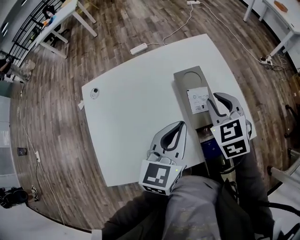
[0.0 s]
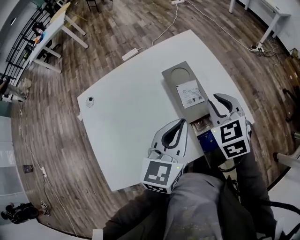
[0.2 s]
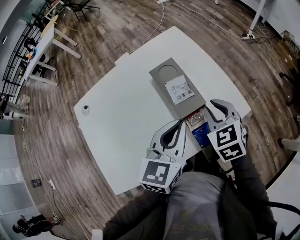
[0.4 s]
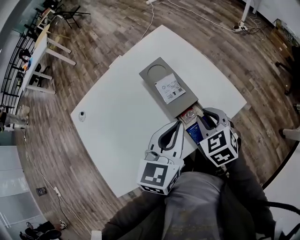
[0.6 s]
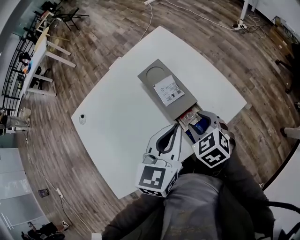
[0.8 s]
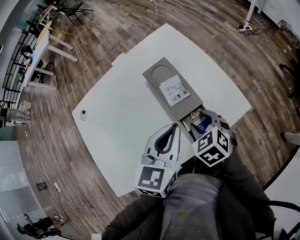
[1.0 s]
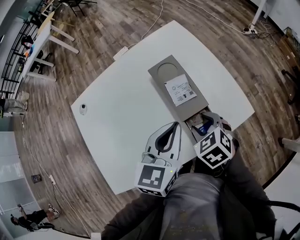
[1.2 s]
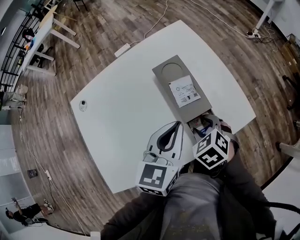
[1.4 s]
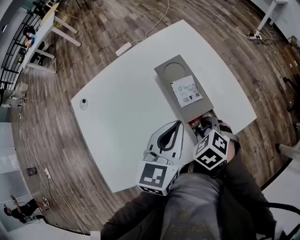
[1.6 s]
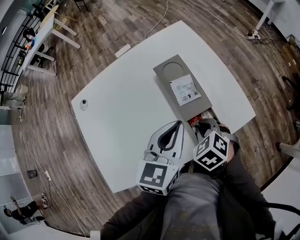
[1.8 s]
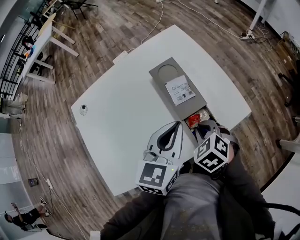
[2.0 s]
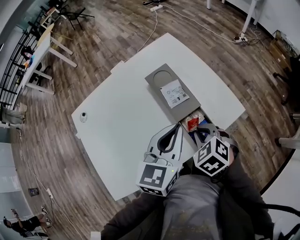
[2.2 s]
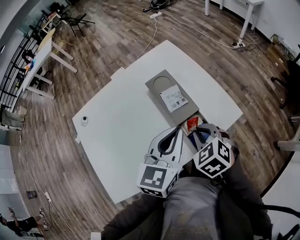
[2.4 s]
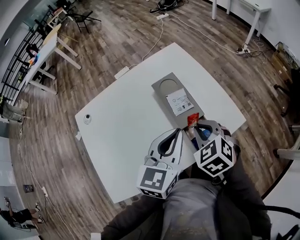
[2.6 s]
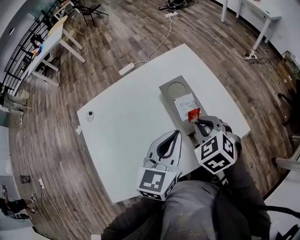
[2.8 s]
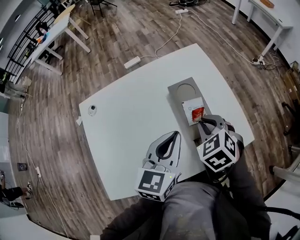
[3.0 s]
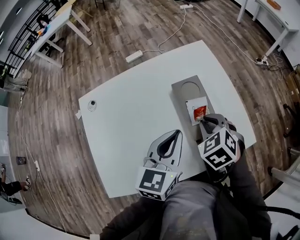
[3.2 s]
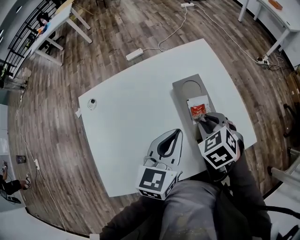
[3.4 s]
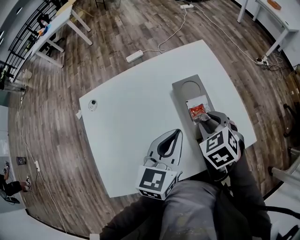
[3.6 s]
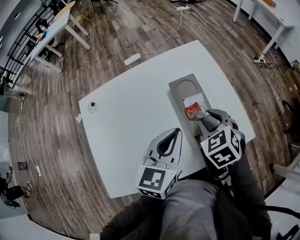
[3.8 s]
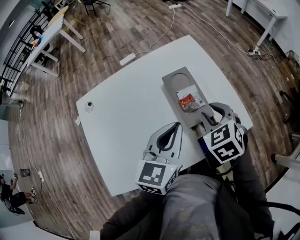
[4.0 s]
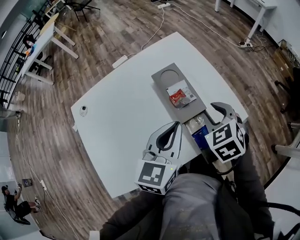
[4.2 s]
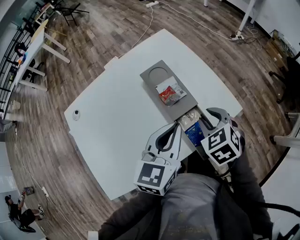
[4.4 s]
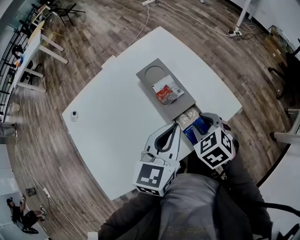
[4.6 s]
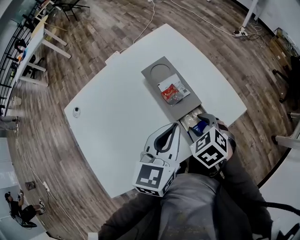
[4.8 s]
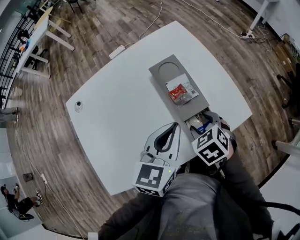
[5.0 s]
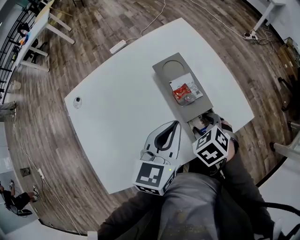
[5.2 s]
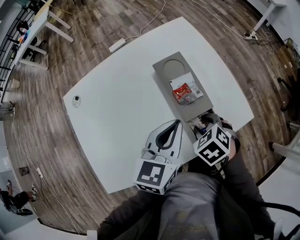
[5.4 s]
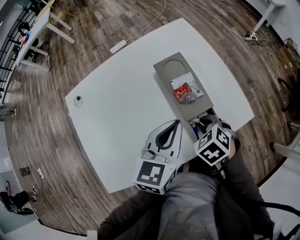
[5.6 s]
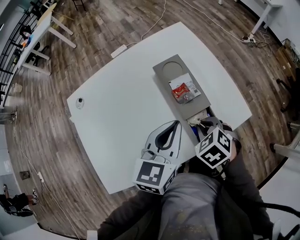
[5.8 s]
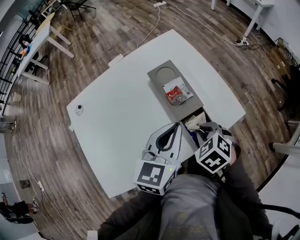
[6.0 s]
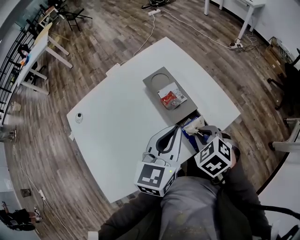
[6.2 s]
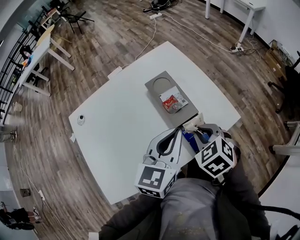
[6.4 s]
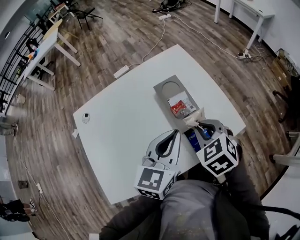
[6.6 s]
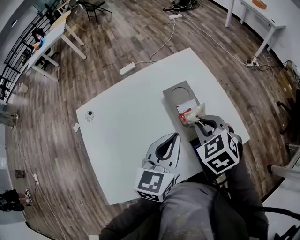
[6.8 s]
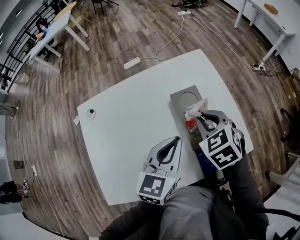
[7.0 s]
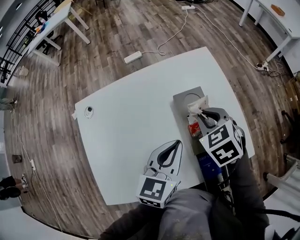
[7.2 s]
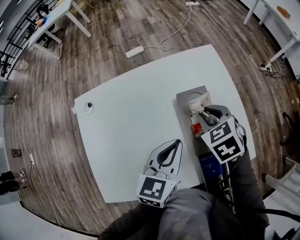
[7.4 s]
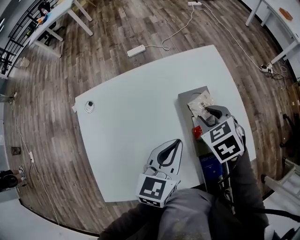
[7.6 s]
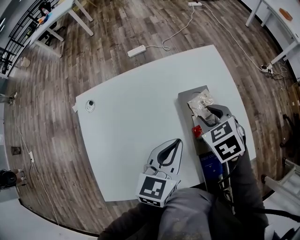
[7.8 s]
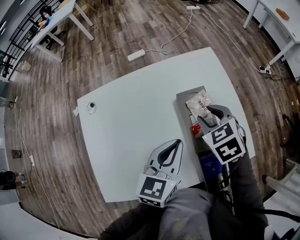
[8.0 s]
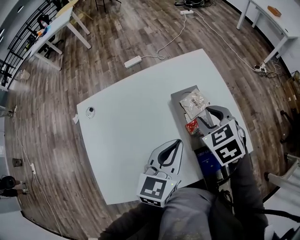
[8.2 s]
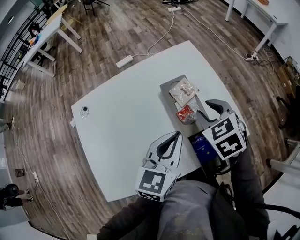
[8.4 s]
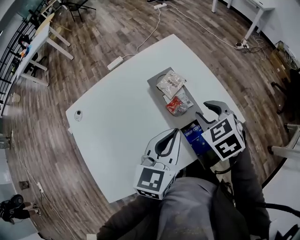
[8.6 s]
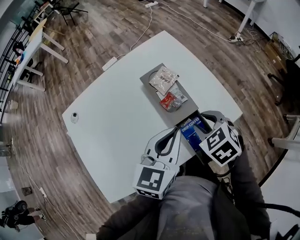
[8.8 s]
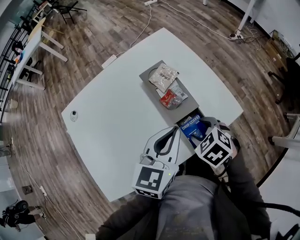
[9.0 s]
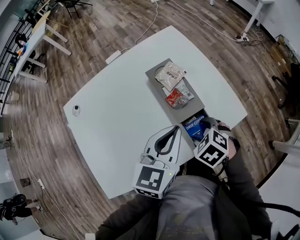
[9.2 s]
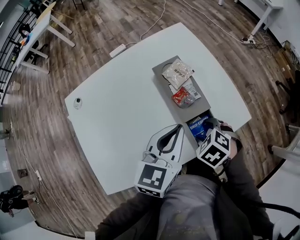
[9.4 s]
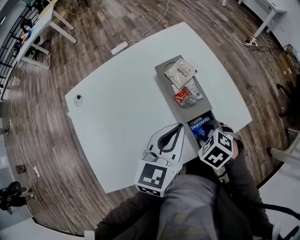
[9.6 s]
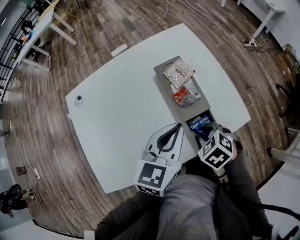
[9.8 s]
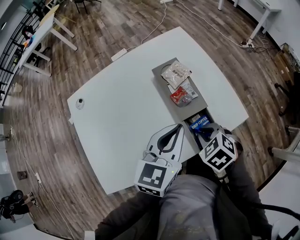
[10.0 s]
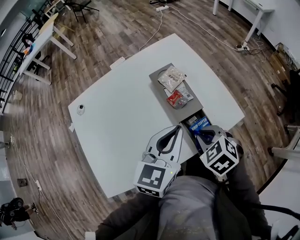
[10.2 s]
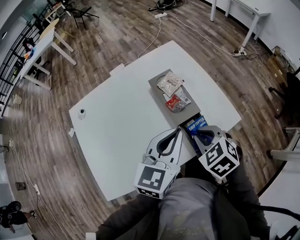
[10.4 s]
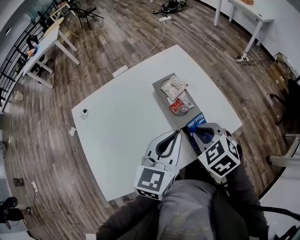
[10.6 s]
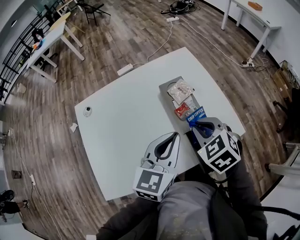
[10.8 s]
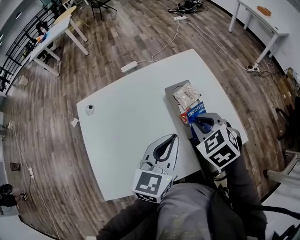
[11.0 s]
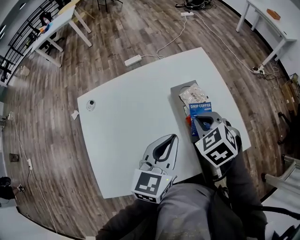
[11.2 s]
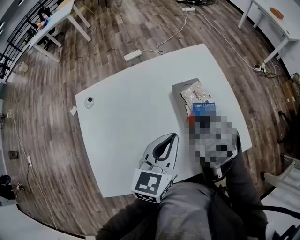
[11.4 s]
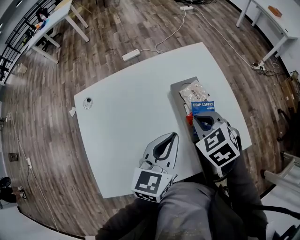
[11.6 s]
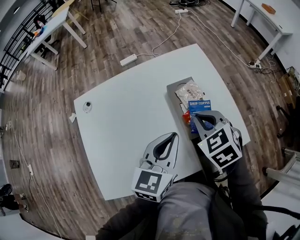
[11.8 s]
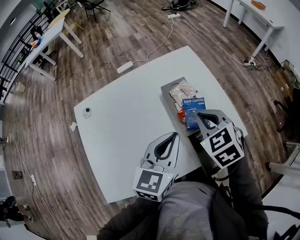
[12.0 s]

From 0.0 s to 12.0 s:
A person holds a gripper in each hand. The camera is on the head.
From 0.0 s to 1.6 s: The right gripper goes some 20 cm downward and backward, and rotates some 30 degrees.
From 1.6 s to 3.0 s: The right gripper is displaced upward and forward by some 10 cm, and closes up.
From 3.0 s to 4.4 s: The left gripper heads to the right, covering some 5 cm. The right gripper travels to the right and backward by roughly 10 cm, and opens.
From 4.4 s to 6.0 s: The right gripper moves about 5 cm, and opens and closes again.
From 6.0 s to 7.6 s: The left gripper is displaced forward and to the left by about 10 cm; the right gripper heads forward, covering some 20 cm.
From 7.6 s to 9.0 s: The right gripper is displaced backward by some 20 cm, and opens its fingers; the left gripper moves to the right and backward, roughly 10 cm.
From 9.0 s to 10.4 s: The right gripper heads upward, covering some 5 cm, and closes up.
From 10.4 s to 12.0 s: The right gripper is displaced forward and upward by about 10 cm.

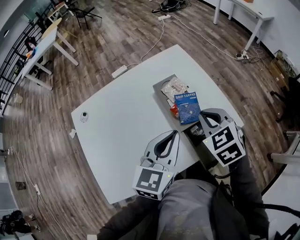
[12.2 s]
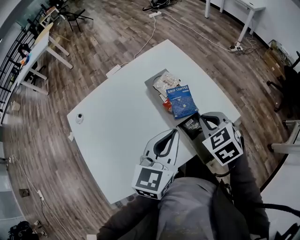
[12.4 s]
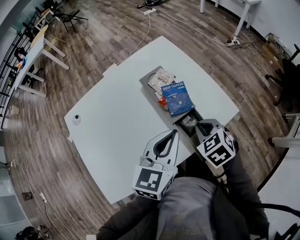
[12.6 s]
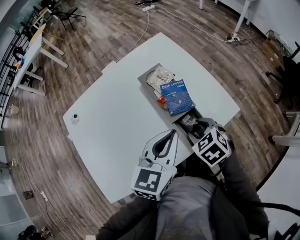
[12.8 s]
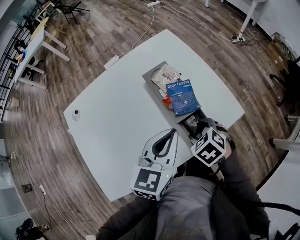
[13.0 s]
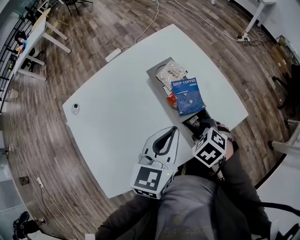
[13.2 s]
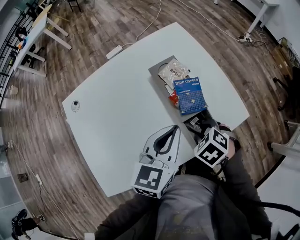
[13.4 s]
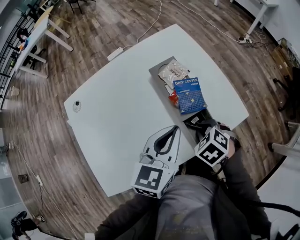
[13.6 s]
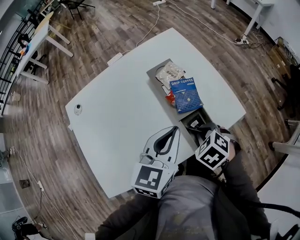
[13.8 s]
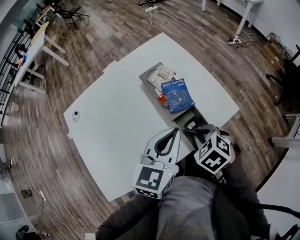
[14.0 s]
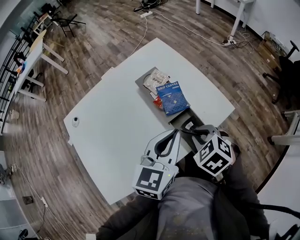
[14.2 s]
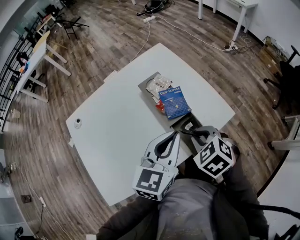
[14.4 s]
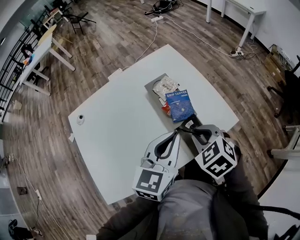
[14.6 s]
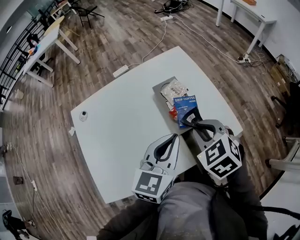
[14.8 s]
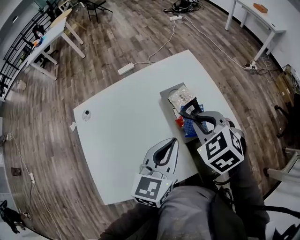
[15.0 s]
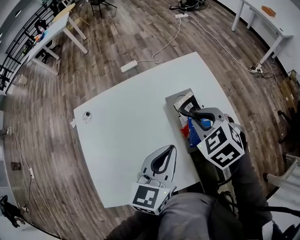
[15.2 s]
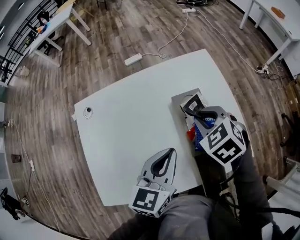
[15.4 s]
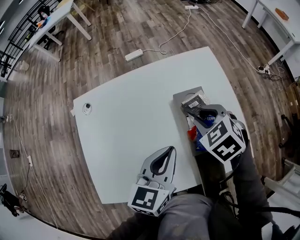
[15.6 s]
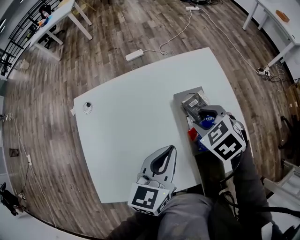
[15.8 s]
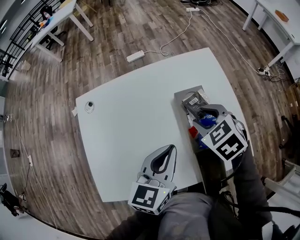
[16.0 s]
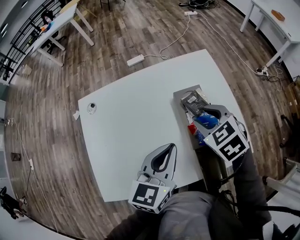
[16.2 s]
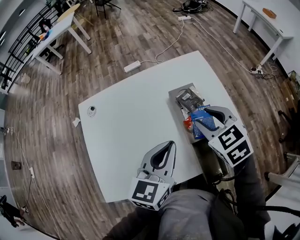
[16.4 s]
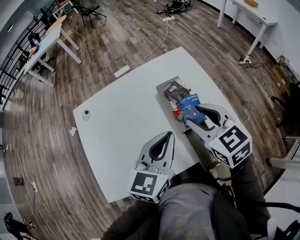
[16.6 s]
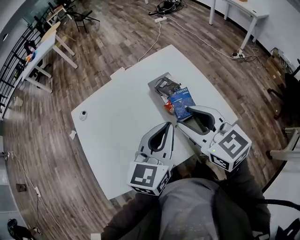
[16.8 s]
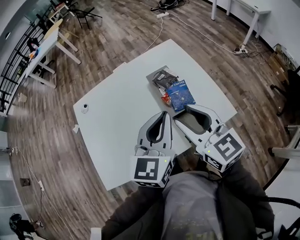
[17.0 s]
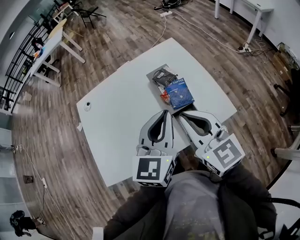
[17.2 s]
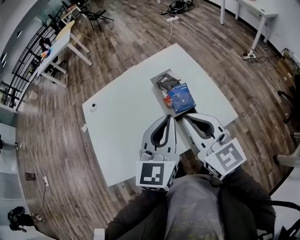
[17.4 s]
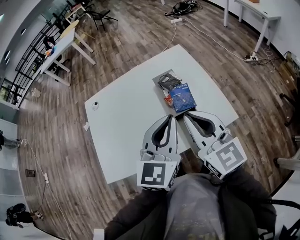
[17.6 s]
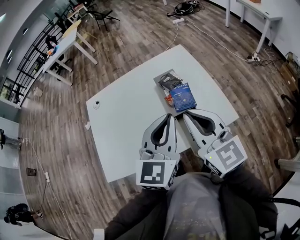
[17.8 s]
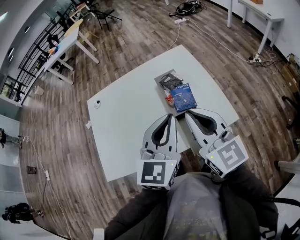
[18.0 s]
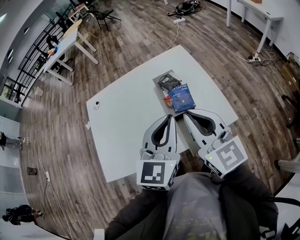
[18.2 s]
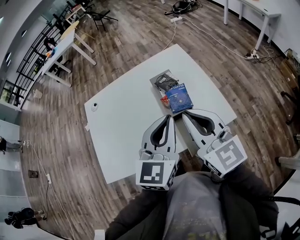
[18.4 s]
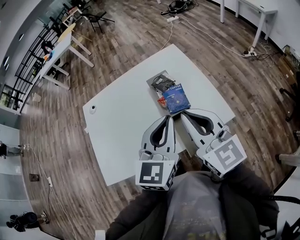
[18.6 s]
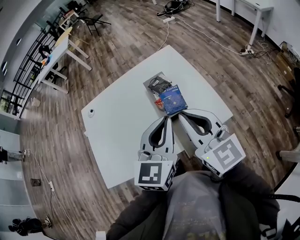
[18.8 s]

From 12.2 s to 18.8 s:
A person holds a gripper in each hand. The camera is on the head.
From 12.2 s to 13.8 s: The right gripper heads downward, covering approximately 15 cm, turns by some 30 degrees, and opens, then closes again.
From 13.8 s to 15.4 s: The right gripper goes some 20 cm forward and upward; the left gripper goes roughly 10 cm to the left and forward.
From 15.4 s to 17.2 s: The left gripper goes roughly 15 cm upward, backward and to the right; the right gripper is displaced backward and upward by approximately 25 cm, angles its fingers upward, by some 50 degrees, and opens, then closes once more.
From 17.2 s to 18.8 s: The right gripper moves roughly 5 cm.

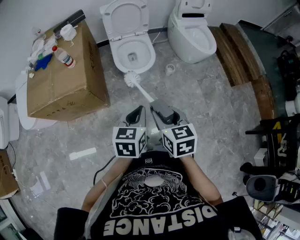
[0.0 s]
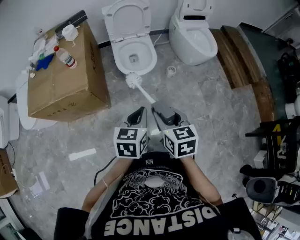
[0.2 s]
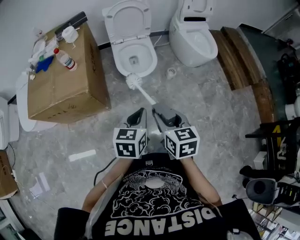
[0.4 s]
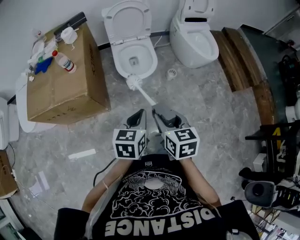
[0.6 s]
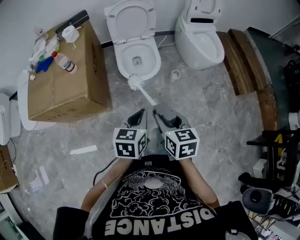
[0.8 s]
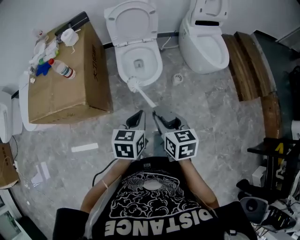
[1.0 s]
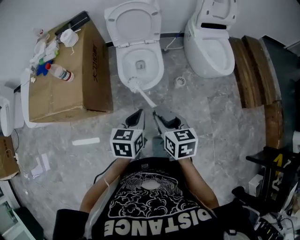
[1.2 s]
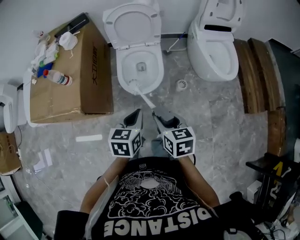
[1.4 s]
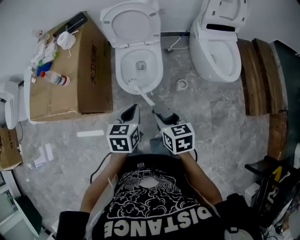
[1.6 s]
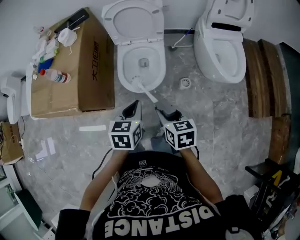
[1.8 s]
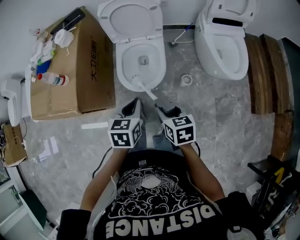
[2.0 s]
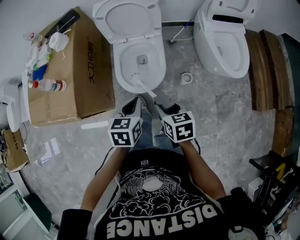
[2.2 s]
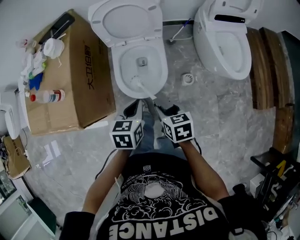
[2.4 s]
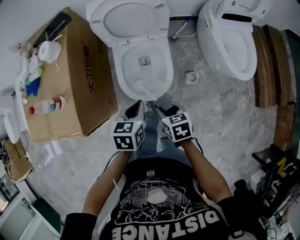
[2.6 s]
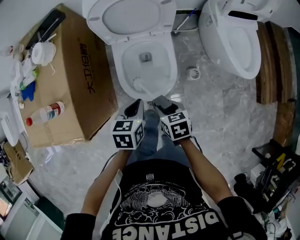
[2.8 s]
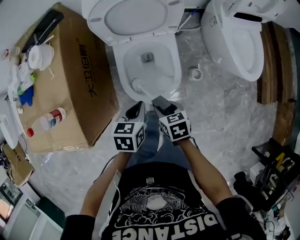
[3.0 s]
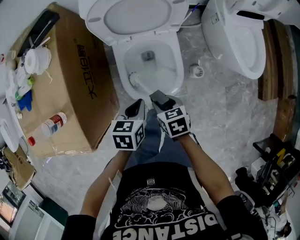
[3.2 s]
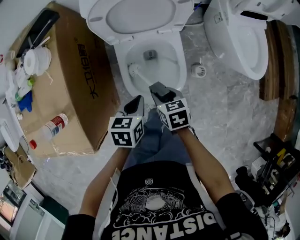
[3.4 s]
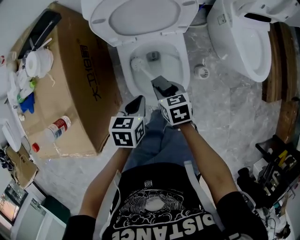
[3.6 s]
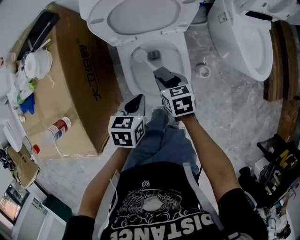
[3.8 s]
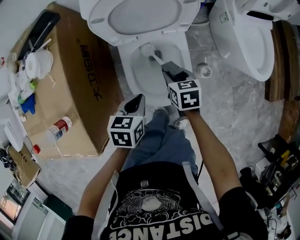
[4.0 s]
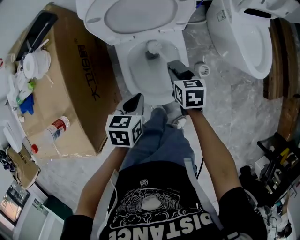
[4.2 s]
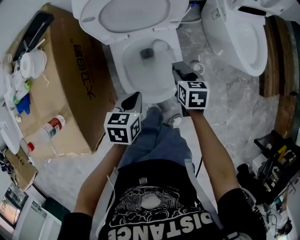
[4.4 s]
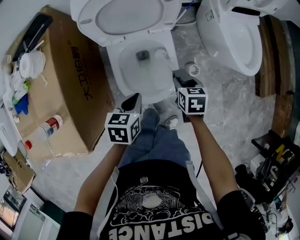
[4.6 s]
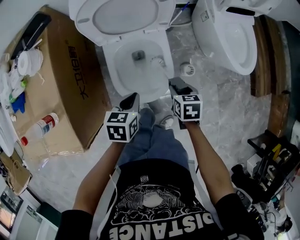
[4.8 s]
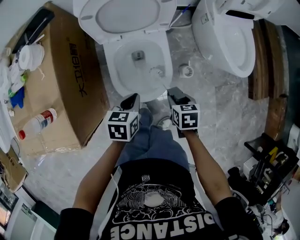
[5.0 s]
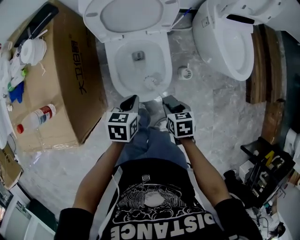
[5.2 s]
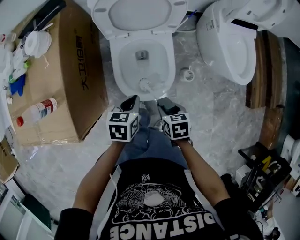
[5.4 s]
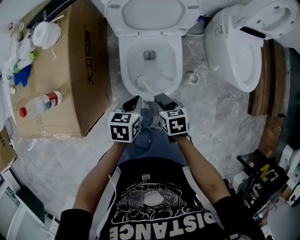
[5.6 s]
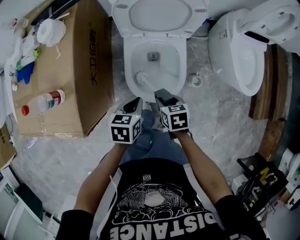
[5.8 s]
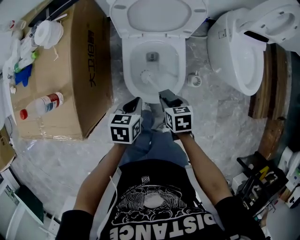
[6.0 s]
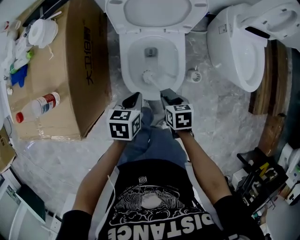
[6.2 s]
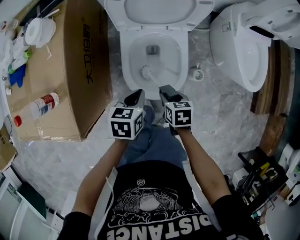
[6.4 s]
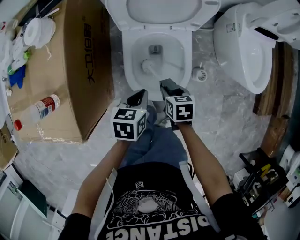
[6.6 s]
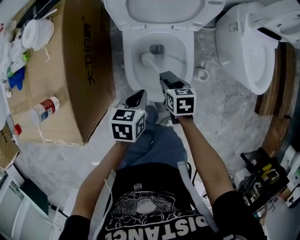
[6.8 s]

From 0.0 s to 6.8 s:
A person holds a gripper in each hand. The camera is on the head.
From 0.0 s to 1.4 s: Both grippers move forward, approximately 20 cm.
From 1.4 s to 2.8 s: The left gripper is displaced forward and downward by roughly 25 cm, while the right gripper travels downward and forward by roughly 25 cm.
From 2.8 s to 4.0 s: The right gripper moves forward, some 20 cm. Meanwhile the left gripper goes approximately 5 cm forward.
From 4.0 s to 5.4 s: The left gripper ends up some 5 cm from where it was. Meanwhile the right gripper goes roughly 20 cm backward.
From 5.4 s to 6.8 s: The right gripper moves forward and downward, approximately 15 cm. The left gripper shifts by about 5 cm.
